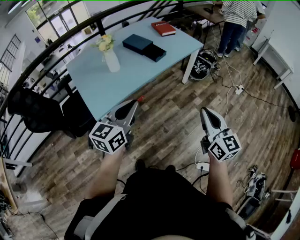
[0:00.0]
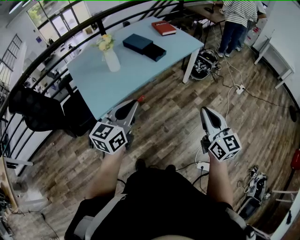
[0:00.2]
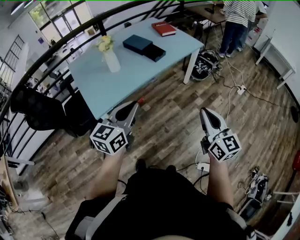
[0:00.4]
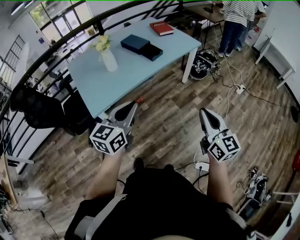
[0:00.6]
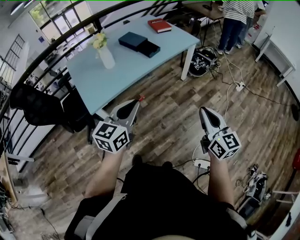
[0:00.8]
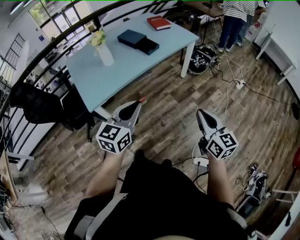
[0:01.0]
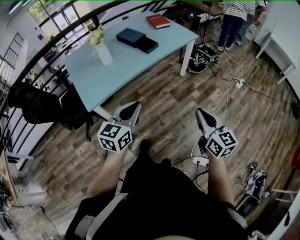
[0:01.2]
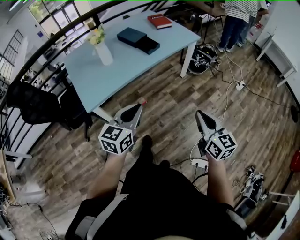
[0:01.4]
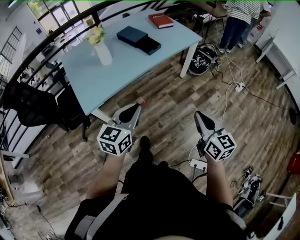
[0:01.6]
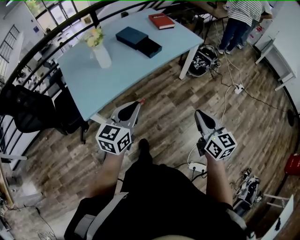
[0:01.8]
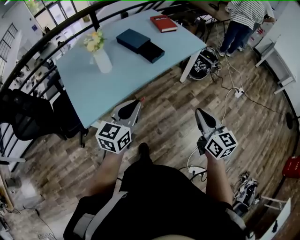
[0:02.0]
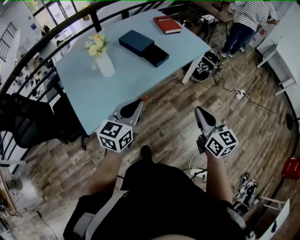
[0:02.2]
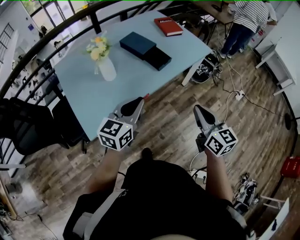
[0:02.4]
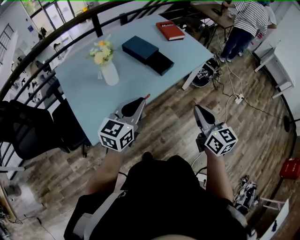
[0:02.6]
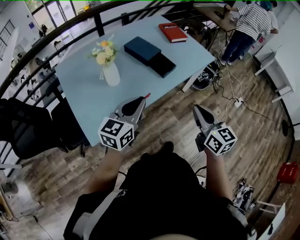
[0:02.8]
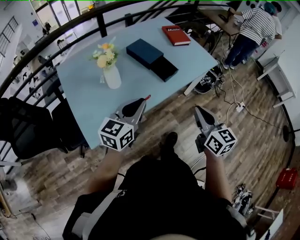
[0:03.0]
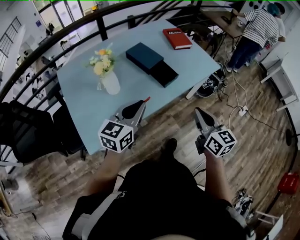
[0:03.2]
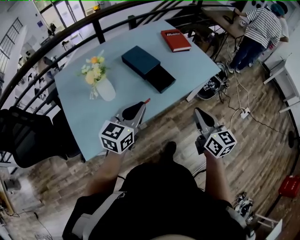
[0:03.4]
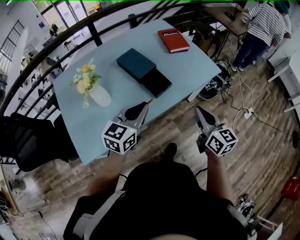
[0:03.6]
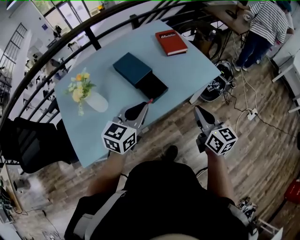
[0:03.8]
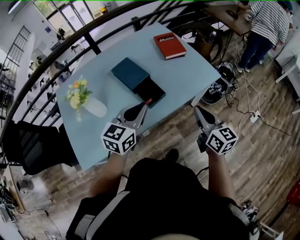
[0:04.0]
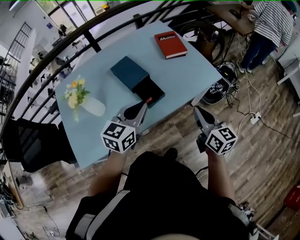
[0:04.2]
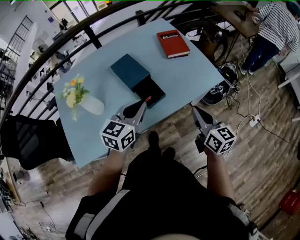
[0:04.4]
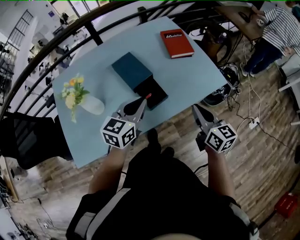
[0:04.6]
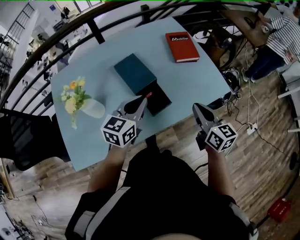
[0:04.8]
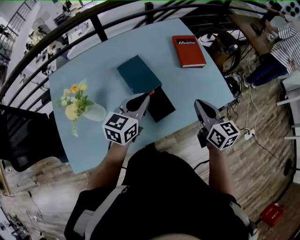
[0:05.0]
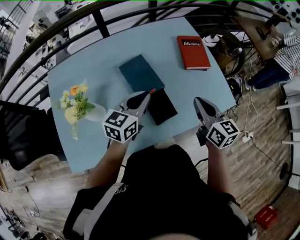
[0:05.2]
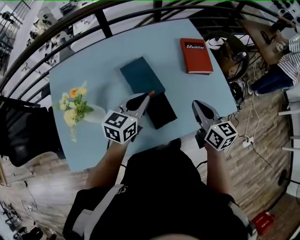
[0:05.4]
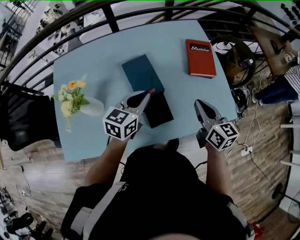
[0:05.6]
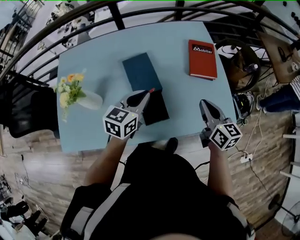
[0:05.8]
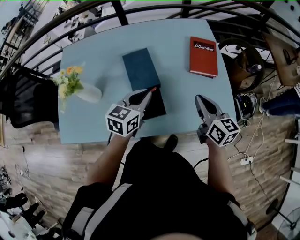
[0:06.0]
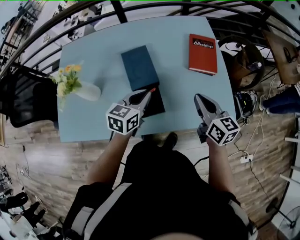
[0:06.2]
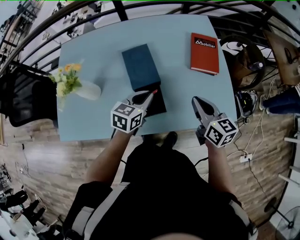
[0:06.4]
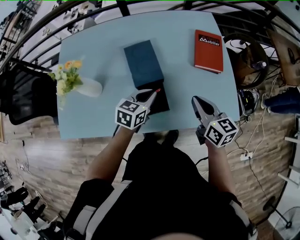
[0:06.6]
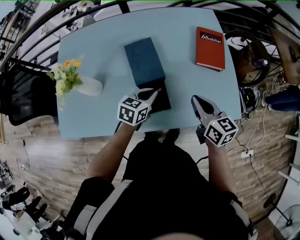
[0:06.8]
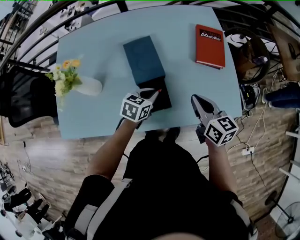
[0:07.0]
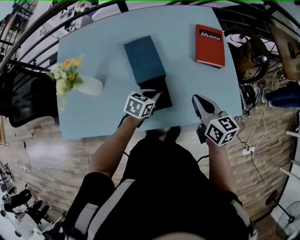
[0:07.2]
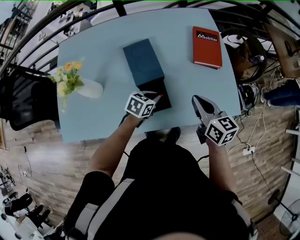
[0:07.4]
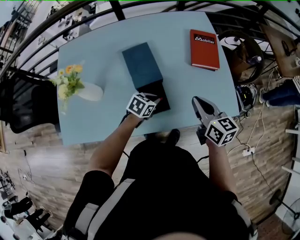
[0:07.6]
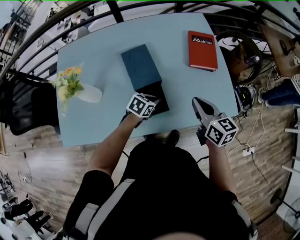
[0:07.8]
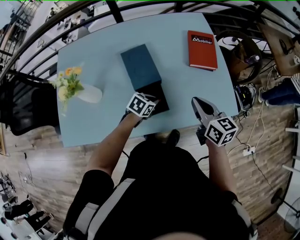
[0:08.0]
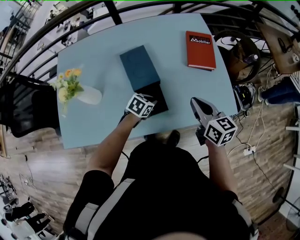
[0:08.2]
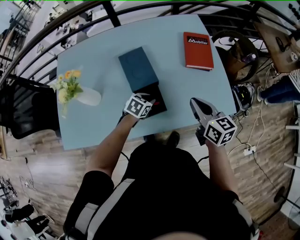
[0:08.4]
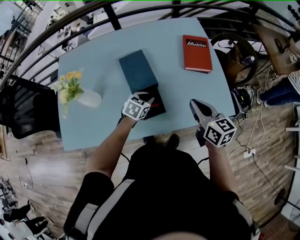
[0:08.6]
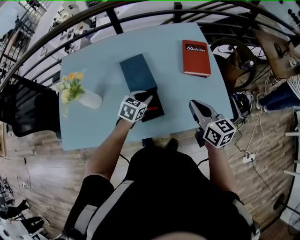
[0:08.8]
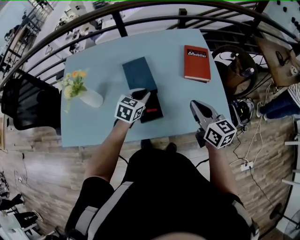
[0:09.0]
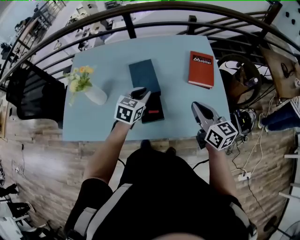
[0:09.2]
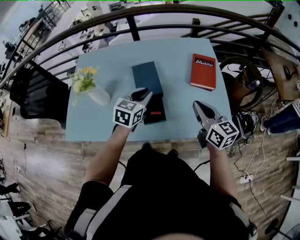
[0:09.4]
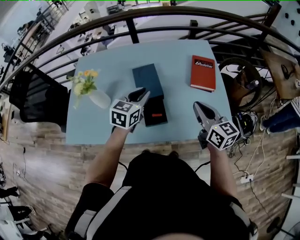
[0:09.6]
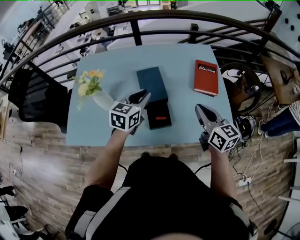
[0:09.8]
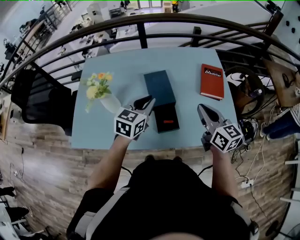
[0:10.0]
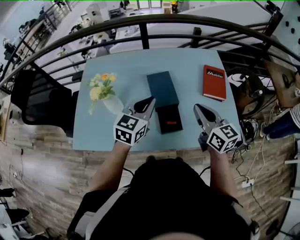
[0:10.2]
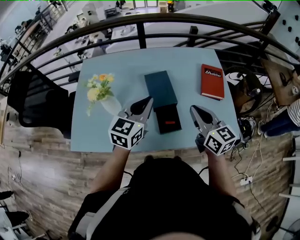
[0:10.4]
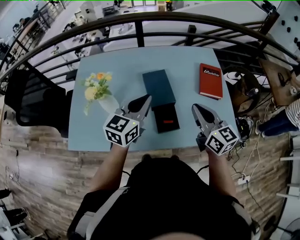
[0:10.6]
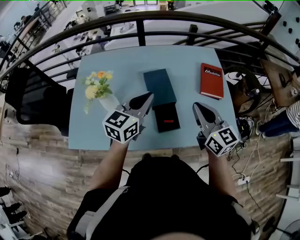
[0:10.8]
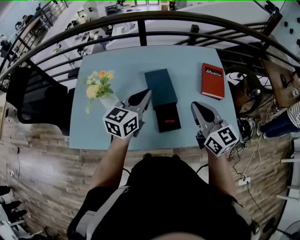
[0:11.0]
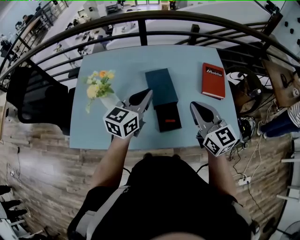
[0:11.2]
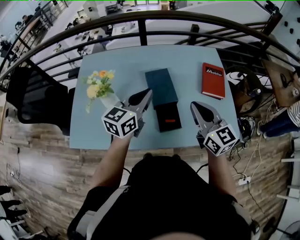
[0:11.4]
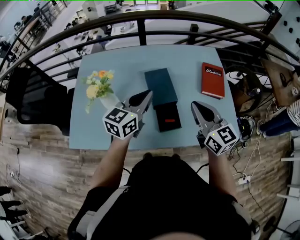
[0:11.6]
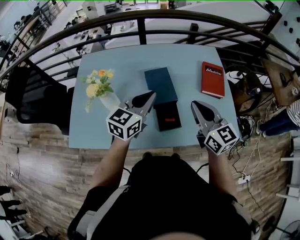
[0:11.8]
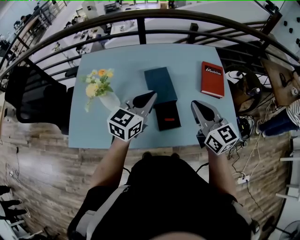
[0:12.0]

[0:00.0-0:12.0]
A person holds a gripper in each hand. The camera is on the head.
0:00.0 to 0:01.6: The left gripper shifts some 10 cm to the right and downward. The right gripper is displaced downward and to the right by roughly 10 cm.
0:01.6 to 0:03.0: The two grippers go approximately 30 cm forward and to the left.
0:03.0 to 0:04.4: The two grippers go approximately 30 cm forward and to the right.
0:04.4 to 0:06.0: The right gripper travels forward by approximately 25 cm, and changes its angle by some 20 degrees; the left gripper moves forward and downward, some 20 cm, and swivels some 20 degrees.
0:06.0 to 0:07.6: The left gripper goes some 15 cm downward, and swivels approximately 30 degrees.
0:07.6 to 0:09.0: The right gripper ends up roughly 5 cm from where it was. The left gripper is displaced upward by approximately 10 cm, and changes its angle by approximately 30 degrees.
0:09.0 to 0:10.4: The right gripper moves to the left and upward, about 15 cm; the left gripper heads upward and to the left, covering about 20 cm, and turns by approximately 30 degrees.
0:10.4 to 0:12.0: There are only small adjustments of the grippers.

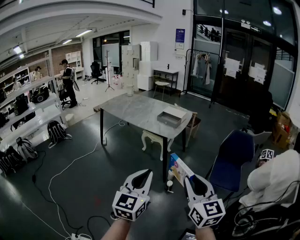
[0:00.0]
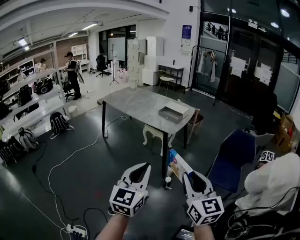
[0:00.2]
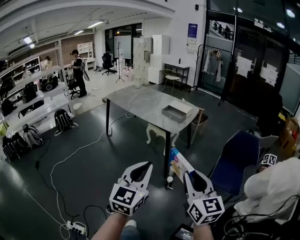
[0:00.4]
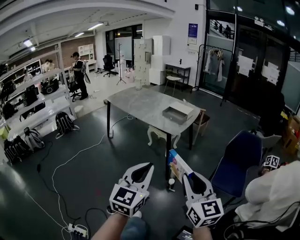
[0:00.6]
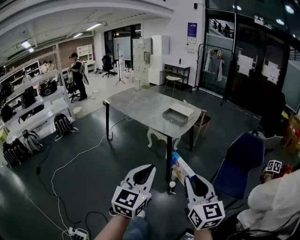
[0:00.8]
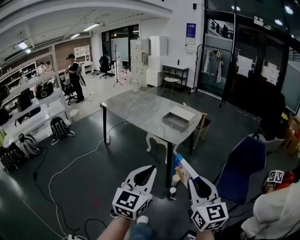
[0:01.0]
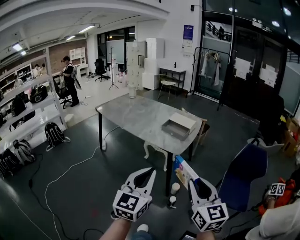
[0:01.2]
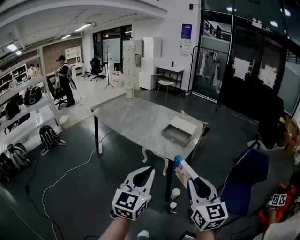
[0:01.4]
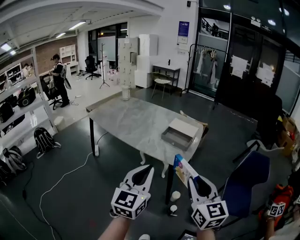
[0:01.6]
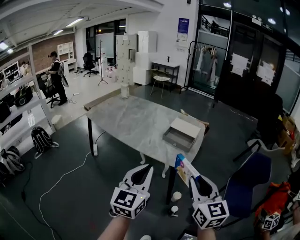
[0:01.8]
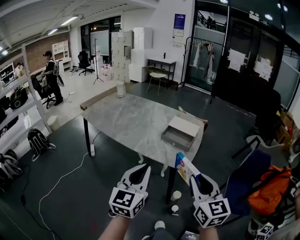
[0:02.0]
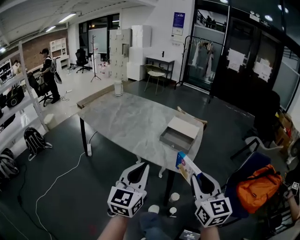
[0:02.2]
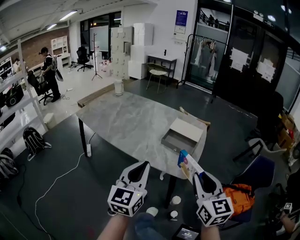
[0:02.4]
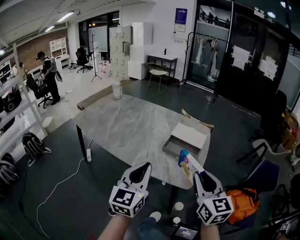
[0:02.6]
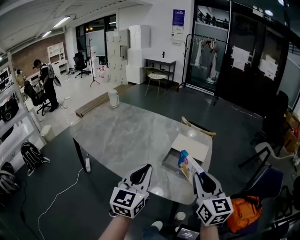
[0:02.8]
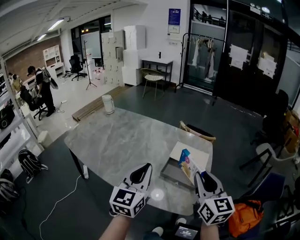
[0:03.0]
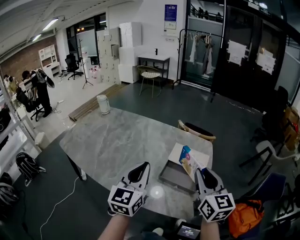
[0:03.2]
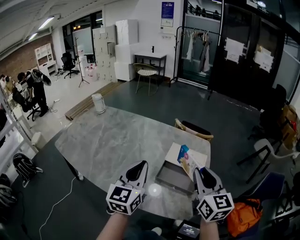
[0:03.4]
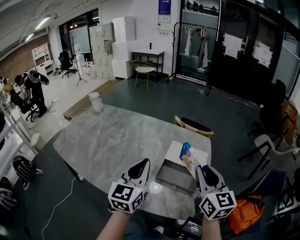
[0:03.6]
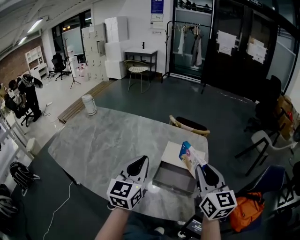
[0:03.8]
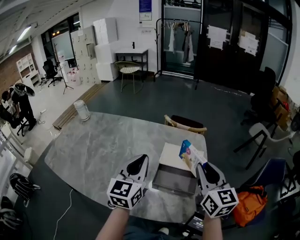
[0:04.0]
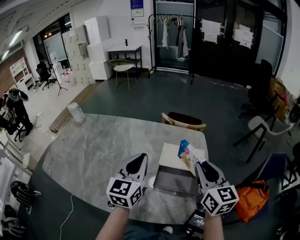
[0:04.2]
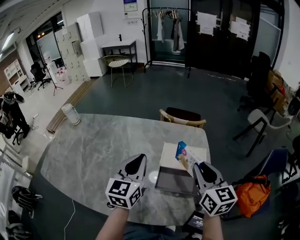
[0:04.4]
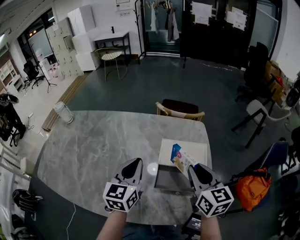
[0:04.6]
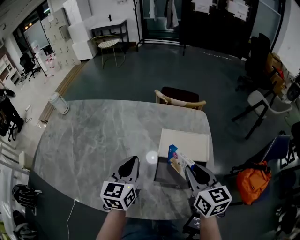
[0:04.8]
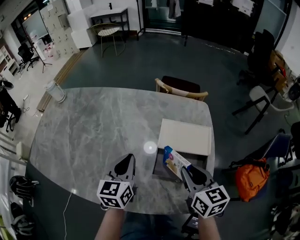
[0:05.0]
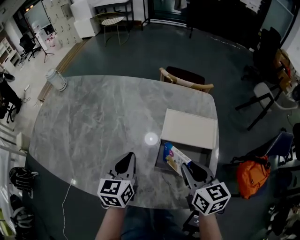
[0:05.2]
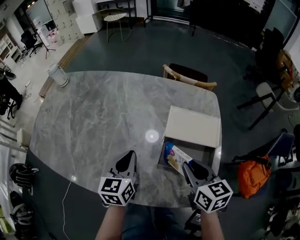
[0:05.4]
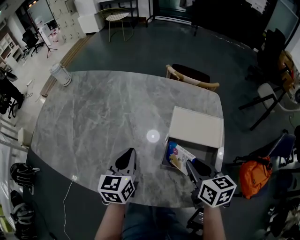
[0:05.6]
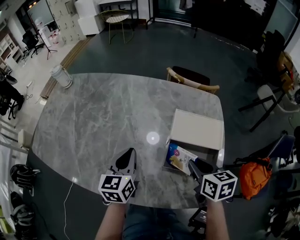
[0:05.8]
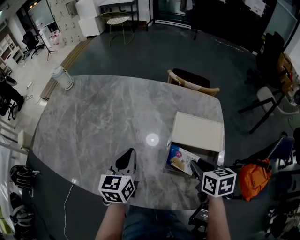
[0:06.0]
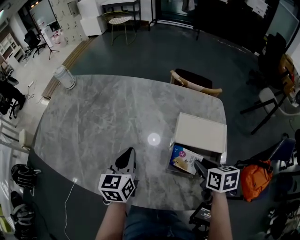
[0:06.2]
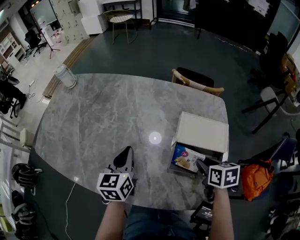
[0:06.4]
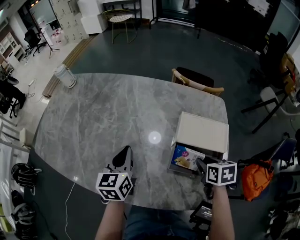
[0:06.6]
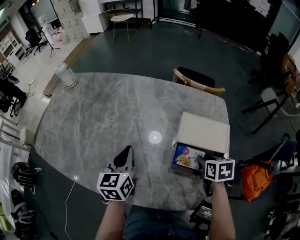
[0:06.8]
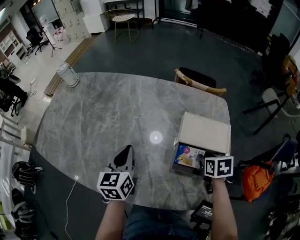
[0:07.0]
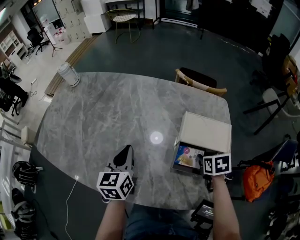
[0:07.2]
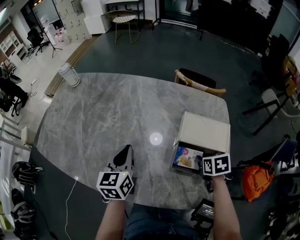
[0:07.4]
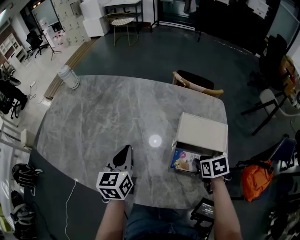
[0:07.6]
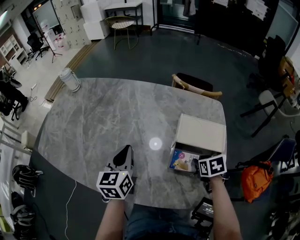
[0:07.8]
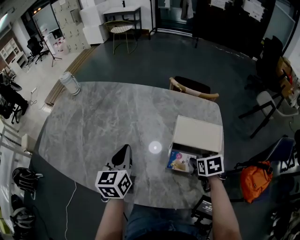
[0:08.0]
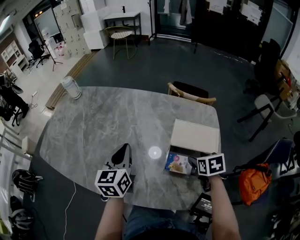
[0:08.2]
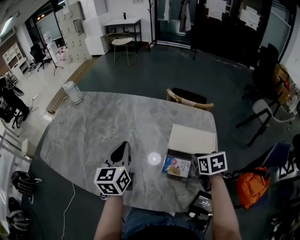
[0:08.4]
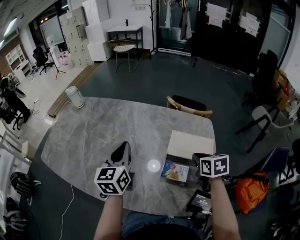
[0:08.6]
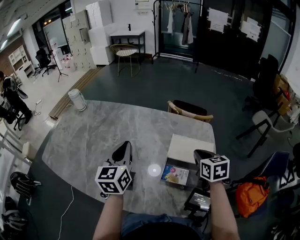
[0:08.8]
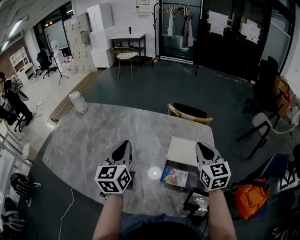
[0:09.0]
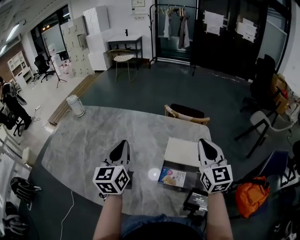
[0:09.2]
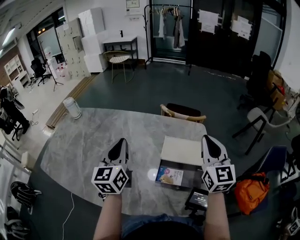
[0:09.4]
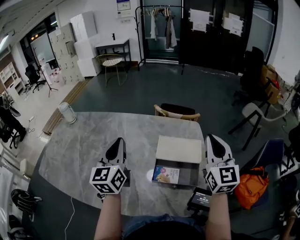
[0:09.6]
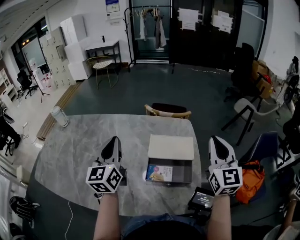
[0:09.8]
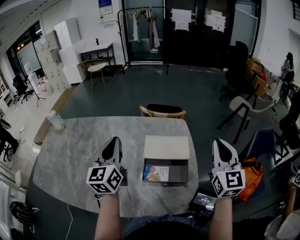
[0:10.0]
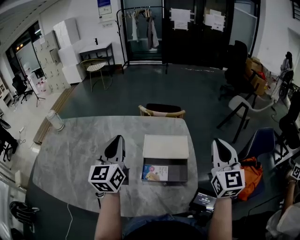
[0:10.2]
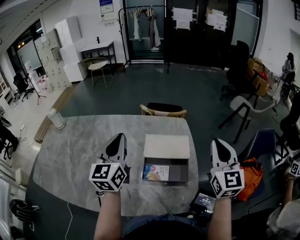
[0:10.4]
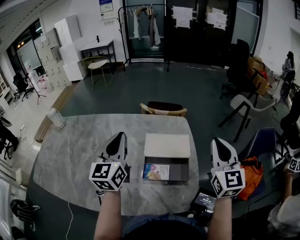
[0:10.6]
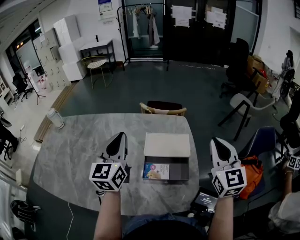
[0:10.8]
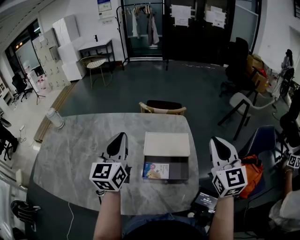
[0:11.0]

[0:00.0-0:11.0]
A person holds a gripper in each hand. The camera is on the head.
0:00.0 to 0:01.6: Both grippers travel together forward, approximately 35 cm.
0:01.6 to 0:03.2: The pair of grippers is taken forward, approximately 40 cm.
0:03.2 to 0:04.8: The right gripper travels downward and forward by some 15 cm, and rotates approximately 20 degrees; the left gripper moves forward and downward, roughly 20 cm, and swivels about 20 degrees.
0:04.8 to 0:06.2: The right gripper moves downward, approximately 10 cm, and turns by approximately 30 degrees. Meanwhile the left gripper moves to the left and downward, some 10 cm.
0:06.2 to 0:07.8: The right gripper is displaced downward by approximately 5 cm.
0:07.8 to 0:09.4: The right gripper is displaced upward by approximately 30 cm, tips its fingers upward by about 70 degrees, and closes, while the left gripper goes roughly 15 cm upward, and swivels roughly 20 degrees.
0:09.4 to 0:11.0: The left gripper shifts approximately 10 cm to the right. The right gripper moves to the right and backward, roughly 10 cm.

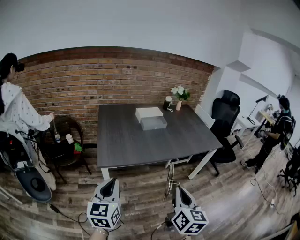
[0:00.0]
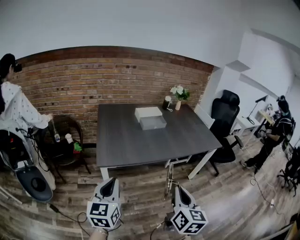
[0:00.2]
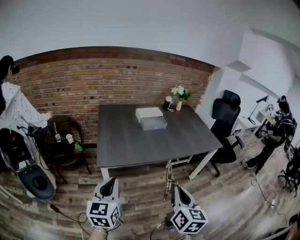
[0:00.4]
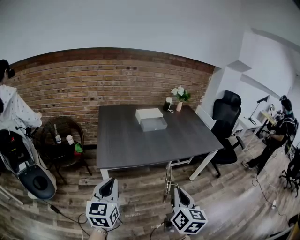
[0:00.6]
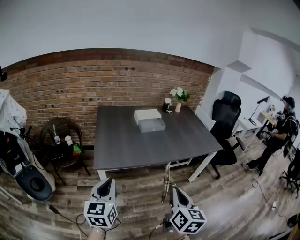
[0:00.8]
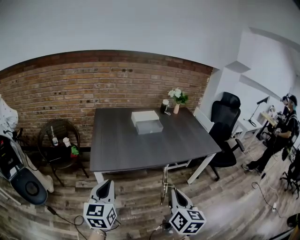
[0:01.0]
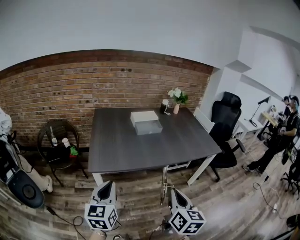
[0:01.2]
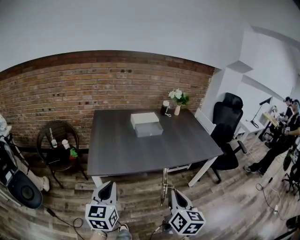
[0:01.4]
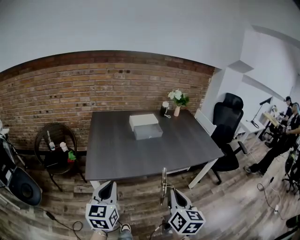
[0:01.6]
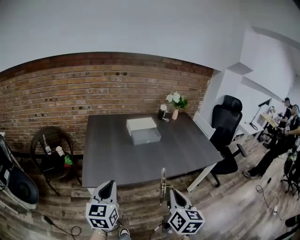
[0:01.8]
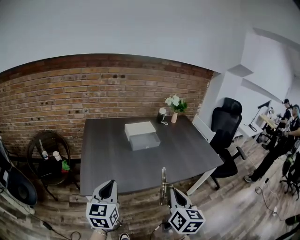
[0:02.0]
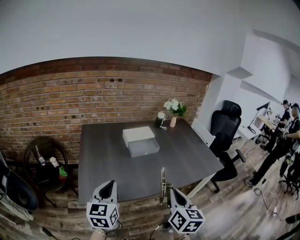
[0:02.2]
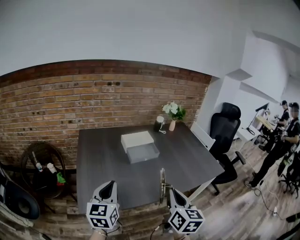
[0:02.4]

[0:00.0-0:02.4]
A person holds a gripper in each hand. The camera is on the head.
0:00.0 to 0:01.2: The right gripper travels to the right and forward by roughly 10 cm. Meanwhile the left gripper goes some 5 cm to the right.
0:01.2 to 0:02.4: The two grippers go some 25 cm forward.
